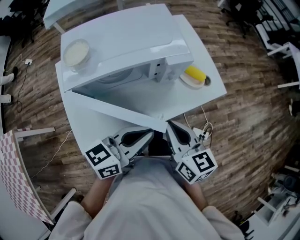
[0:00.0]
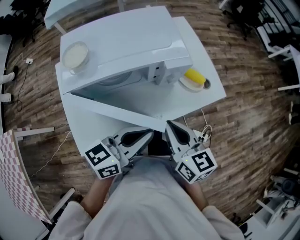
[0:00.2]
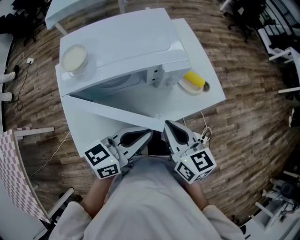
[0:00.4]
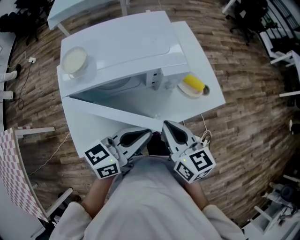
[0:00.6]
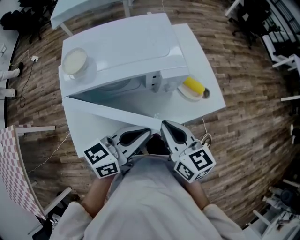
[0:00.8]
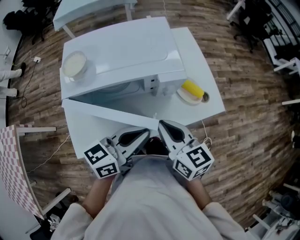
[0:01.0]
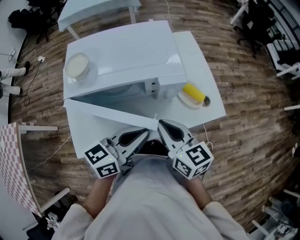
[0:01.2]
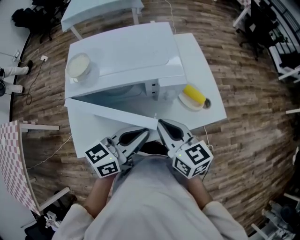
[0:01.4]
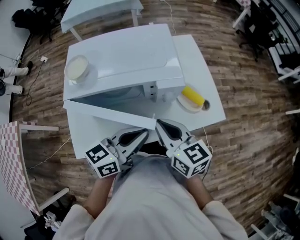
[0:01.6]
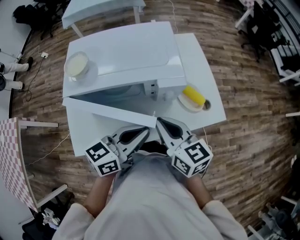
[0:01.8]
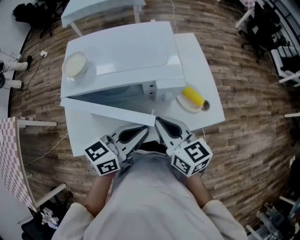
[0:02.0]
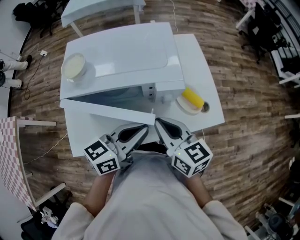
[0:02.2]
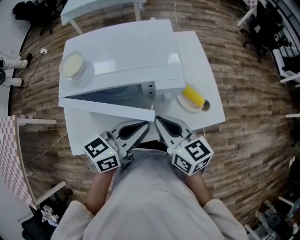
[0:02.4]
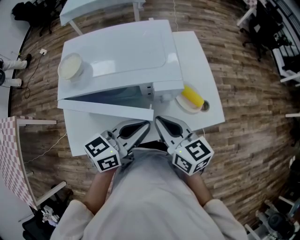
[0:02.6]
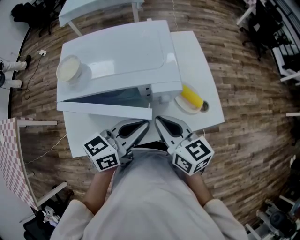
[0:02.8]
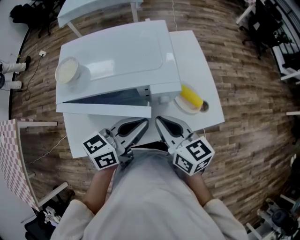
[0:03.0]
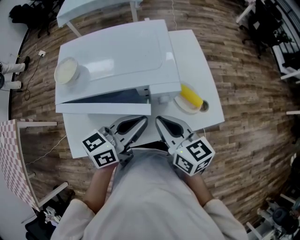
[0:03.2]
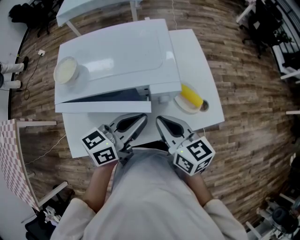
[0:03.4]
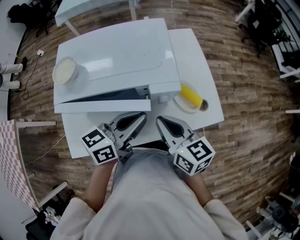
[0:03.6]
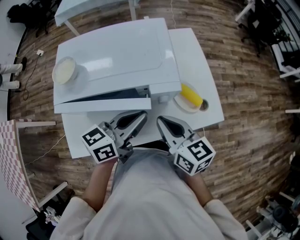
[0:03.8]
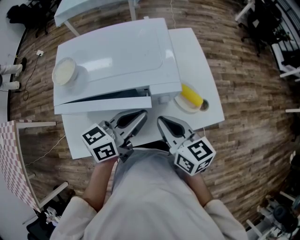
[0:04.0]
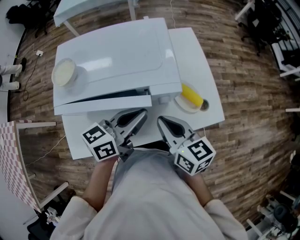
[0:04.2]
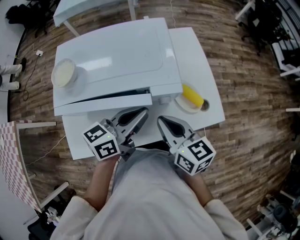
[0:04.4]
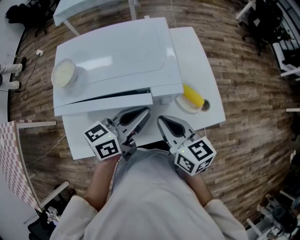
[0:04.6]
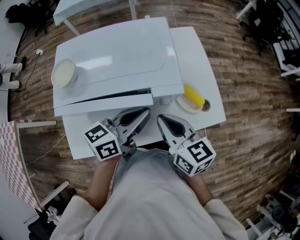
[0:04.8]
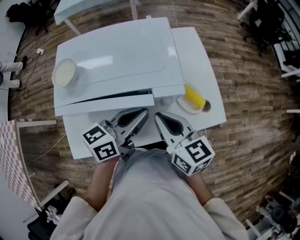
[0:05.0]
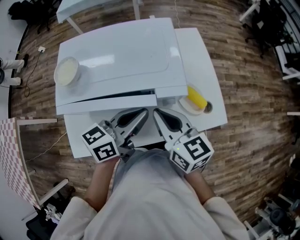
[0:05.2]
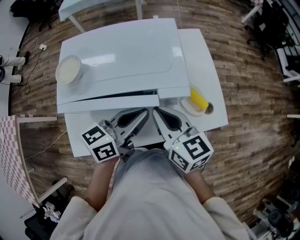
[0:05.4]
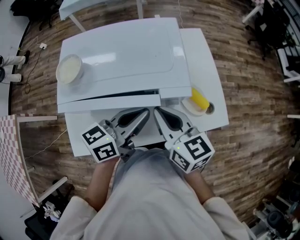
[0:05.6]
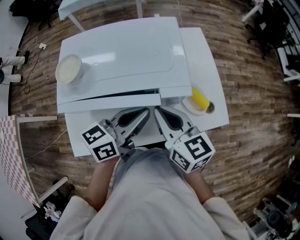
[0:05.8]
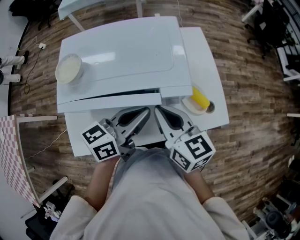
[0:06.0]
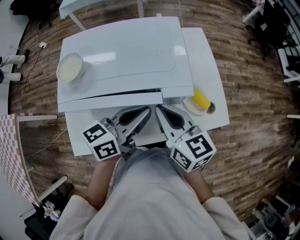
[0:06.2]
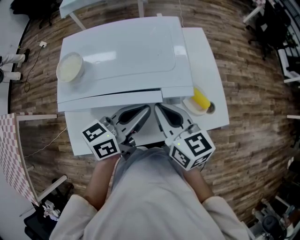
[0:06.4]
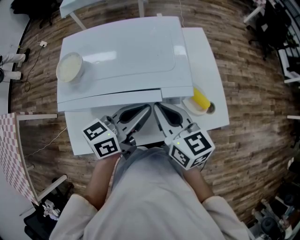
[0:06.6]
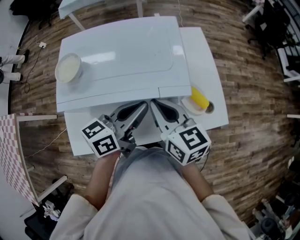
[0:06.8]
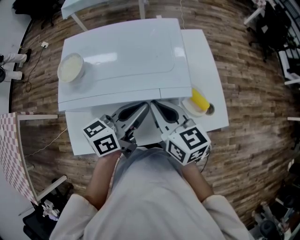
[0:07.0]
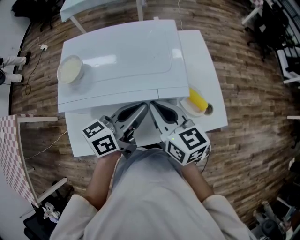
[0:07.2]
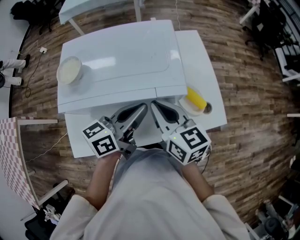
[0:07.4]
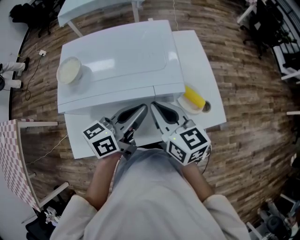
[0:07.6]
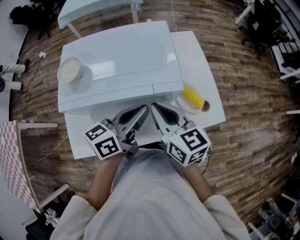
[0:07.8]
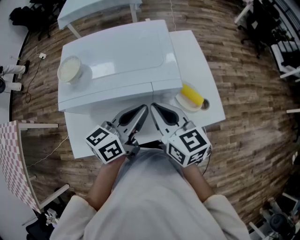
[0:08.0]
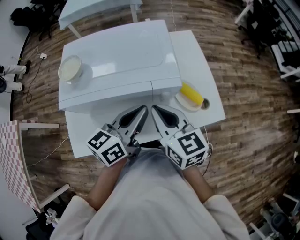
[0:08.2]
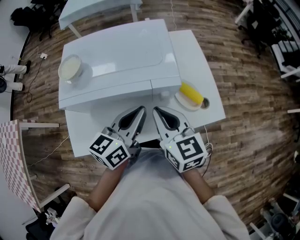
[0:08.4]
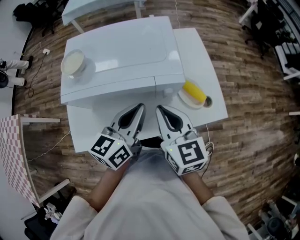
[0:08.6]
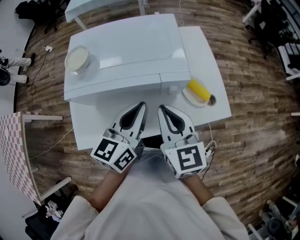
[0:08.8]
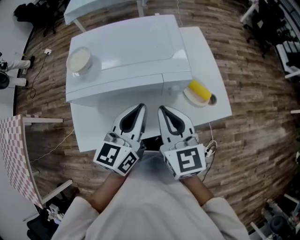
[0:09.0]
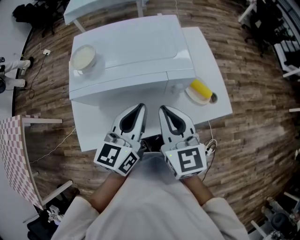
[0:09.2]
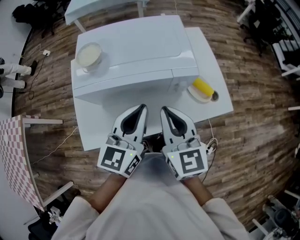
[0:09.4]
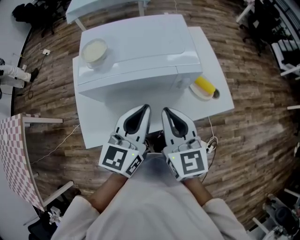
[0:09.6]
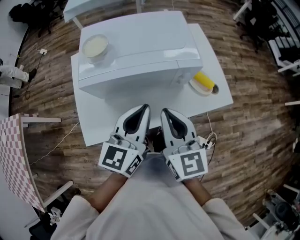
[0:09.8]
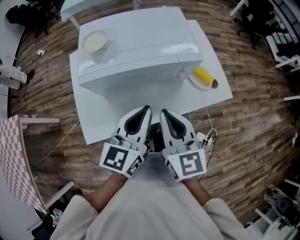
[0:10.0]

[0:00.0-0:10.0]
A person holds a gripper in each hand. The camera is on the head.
0.0 to 1.4 s: The two grippers go about 5 cm forward.
1.4 to 2.8 s: The left gripper is displaced forward by roughly 5 cm.
2.8 to 4.2 s: The grippers make only small movements.
4.2 to 5.8 s: The right gripper moves some 5 cm.
5.8 to 7.2 s: The grippers stay close to where they were, moving slightly.
7.2 to 8.6 s: The right gripper shifts some 5 cm backward. The left gripper changes its angle by about 20 degrees.
8.6 to 10.0 s: Both grippers move backward and to the left, about 10 cm.

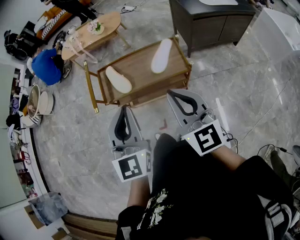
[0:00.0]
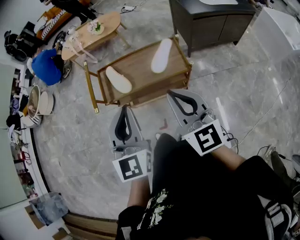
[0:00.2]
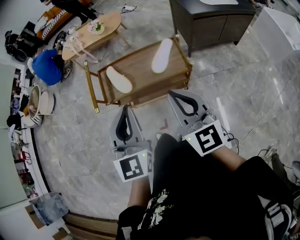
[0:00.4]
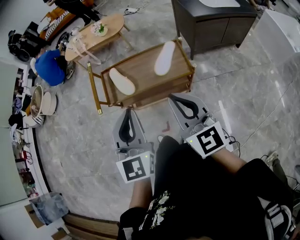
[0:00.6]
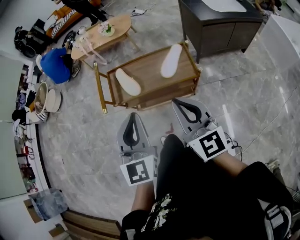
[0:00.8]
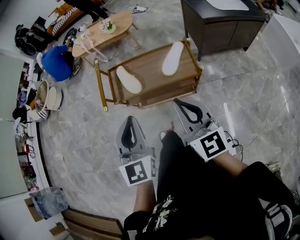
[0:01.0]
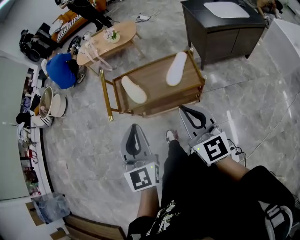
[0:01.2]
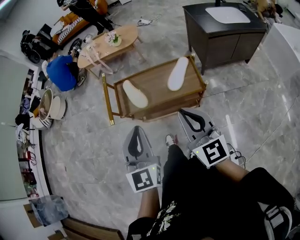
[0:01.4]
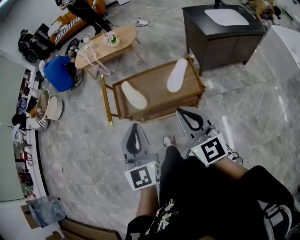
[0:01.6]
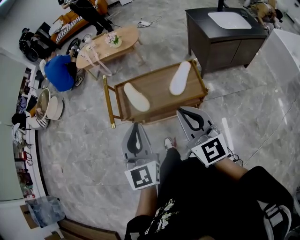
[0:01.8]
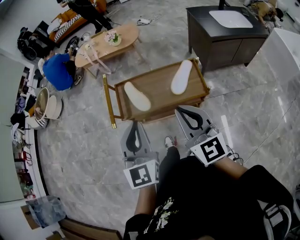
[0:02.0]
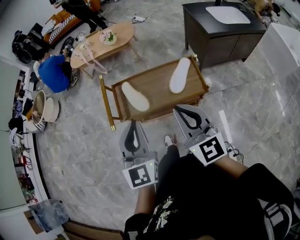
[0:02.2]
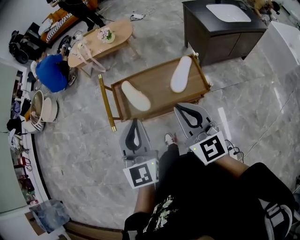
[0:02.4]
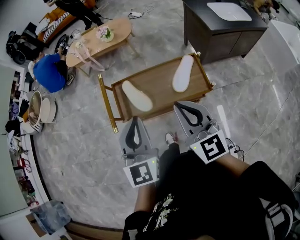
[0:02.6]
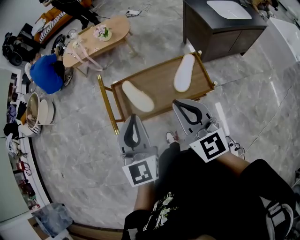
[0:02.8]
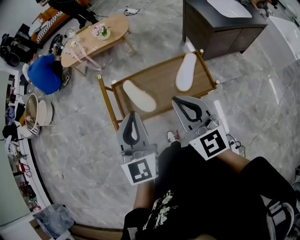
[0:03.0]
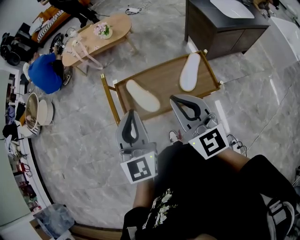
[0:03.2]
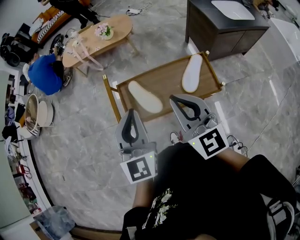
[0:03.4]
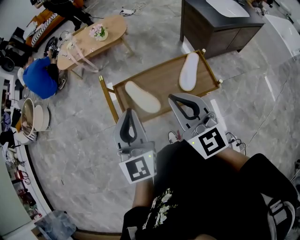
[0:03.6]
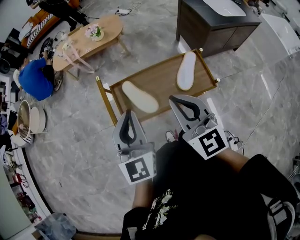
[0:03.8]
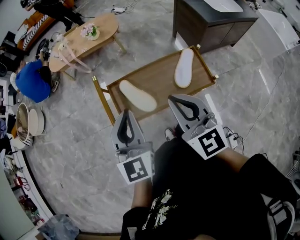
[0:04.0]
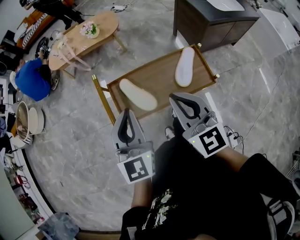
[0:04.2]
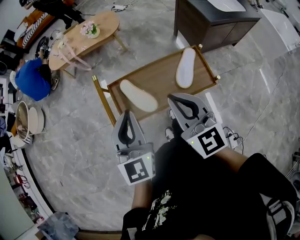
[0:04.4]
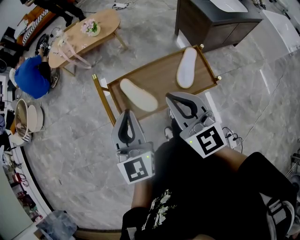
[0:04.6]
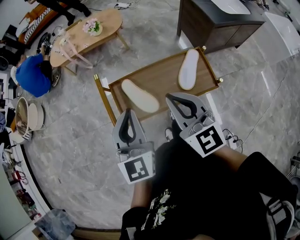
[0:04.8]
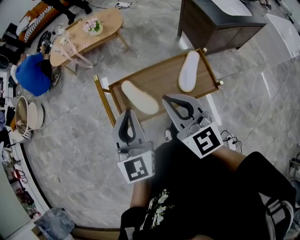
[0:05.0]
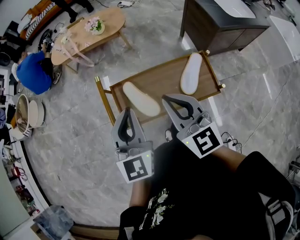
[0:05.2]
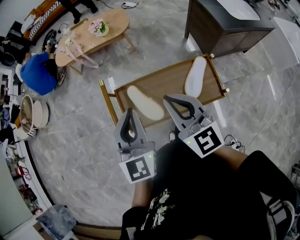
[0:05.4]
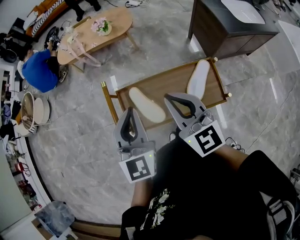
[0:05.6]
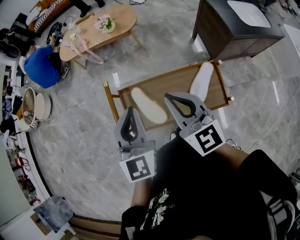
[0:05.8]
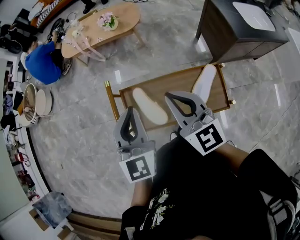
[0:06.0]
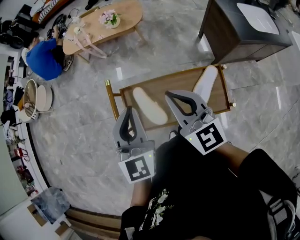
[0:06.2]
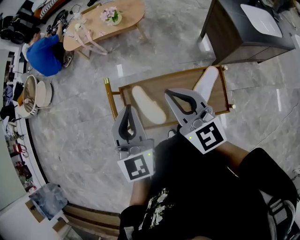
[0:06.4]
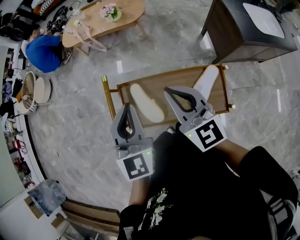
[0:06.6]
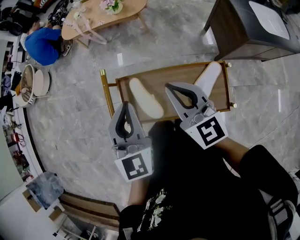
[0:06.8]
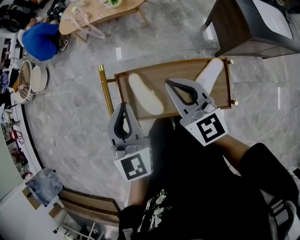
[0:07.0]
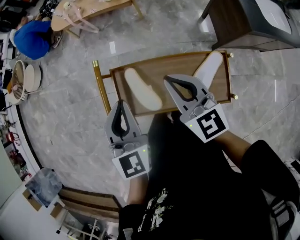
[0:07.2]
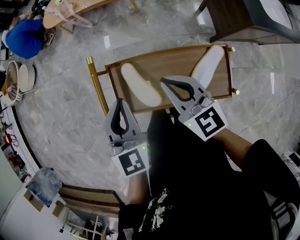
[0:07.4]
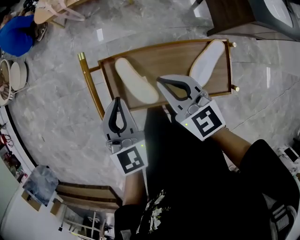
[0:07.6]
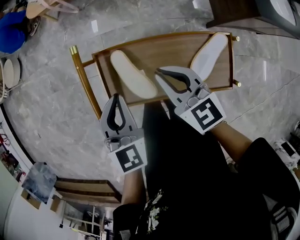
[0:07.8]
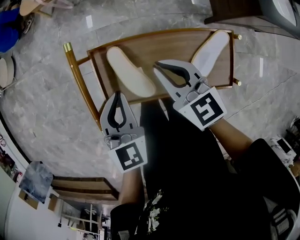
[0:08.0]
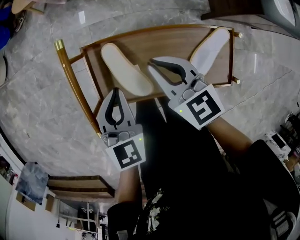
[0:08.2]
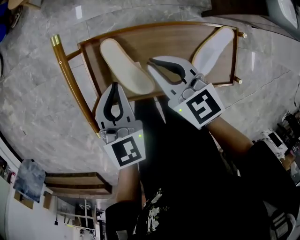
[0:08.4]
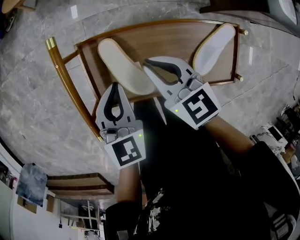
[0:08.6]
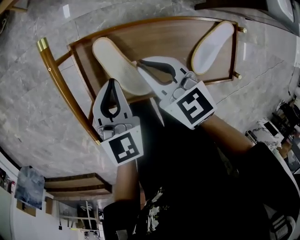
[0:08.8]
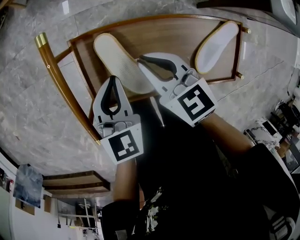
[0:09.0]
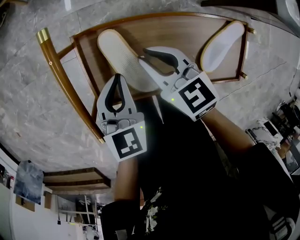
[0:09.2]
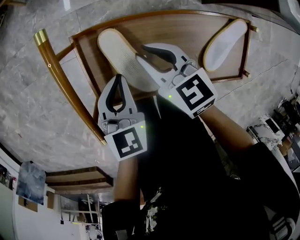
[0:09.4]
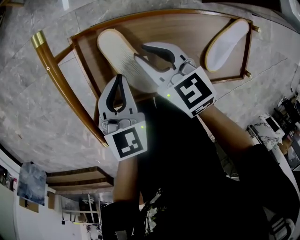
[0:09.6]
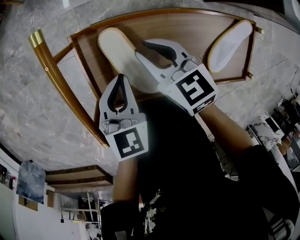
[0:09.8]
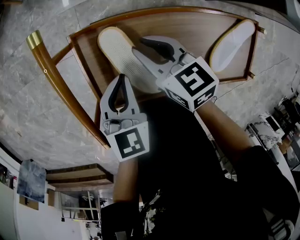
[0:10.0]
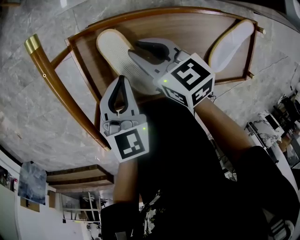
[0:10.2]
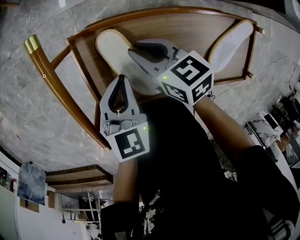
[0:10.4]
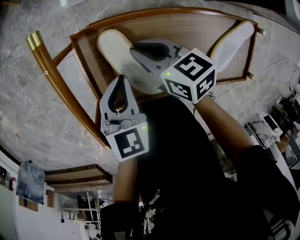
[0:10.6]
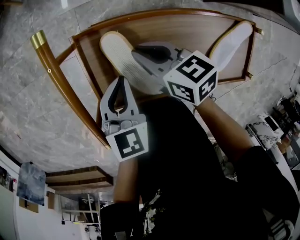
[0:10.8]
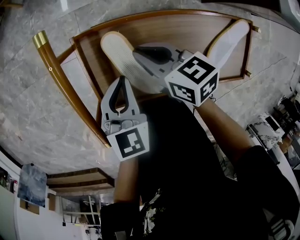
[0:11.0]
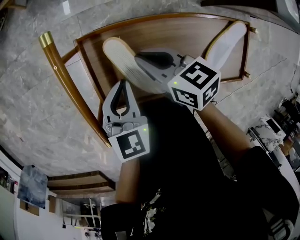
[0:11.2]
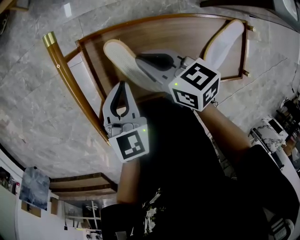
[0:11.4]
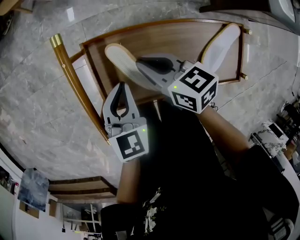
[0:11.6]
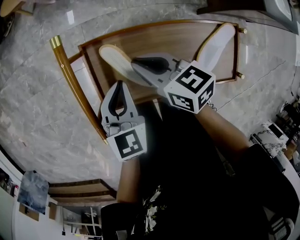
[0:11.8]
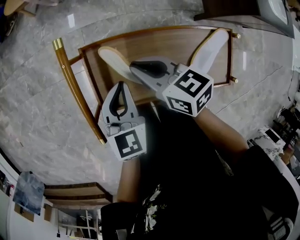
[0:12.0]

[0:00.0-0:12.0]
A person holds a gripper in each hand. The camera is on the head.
0.0 to 1.6 s: There are only small adjustments of the grippers.
1.6 to 3.0 s: The left gripper shifts some 15 cm forward. The right gripper shifts approximately 15 cm forward and to the left.
3.0 to 4.4 s: The right gripper shifts by about 5 cm. Meanwhile the left gripper changes place by approximately 5 cm.
4.4 to 6.0 s: The grippers both shift forward by approximately 10 cm.
6.0 to 7.6 s: The two grippers go approximately 15 cm downward. The right gripper swivels some 20 degrees.
7.6 to 9.0 s: The grippers both shift downward by approximately 15 cm.
9.0 to 10.4 s: The left gripper travels downward by about 5 cm, while the right gripper moves downward, about 10 cm.
10.4 to 12.0 s: Both grippers travel together upward, roughly 10 cm.

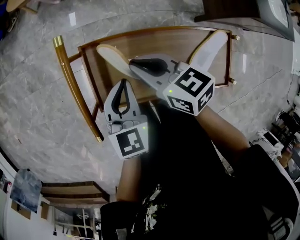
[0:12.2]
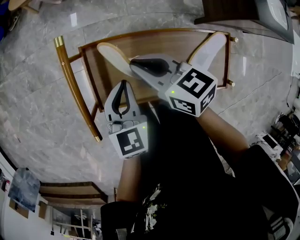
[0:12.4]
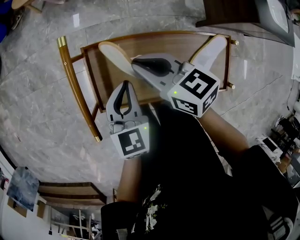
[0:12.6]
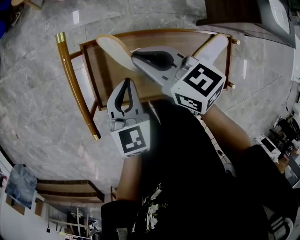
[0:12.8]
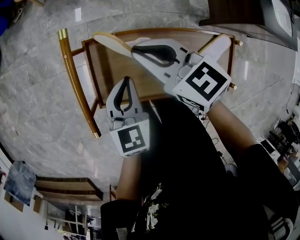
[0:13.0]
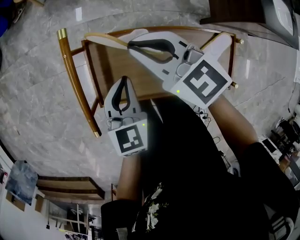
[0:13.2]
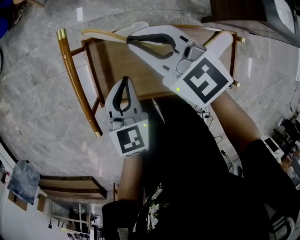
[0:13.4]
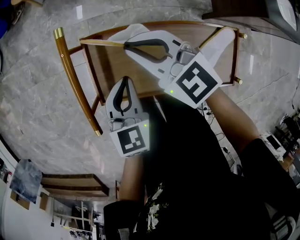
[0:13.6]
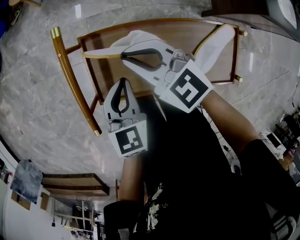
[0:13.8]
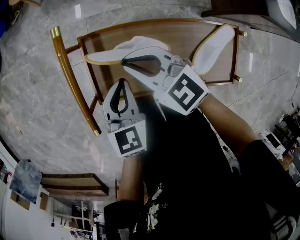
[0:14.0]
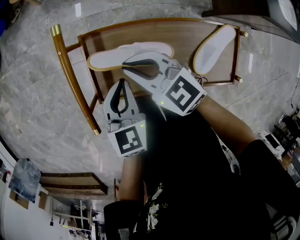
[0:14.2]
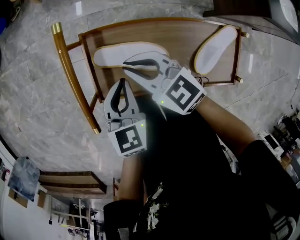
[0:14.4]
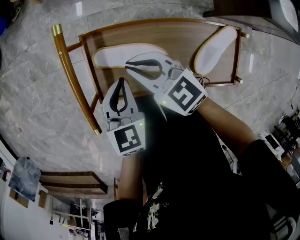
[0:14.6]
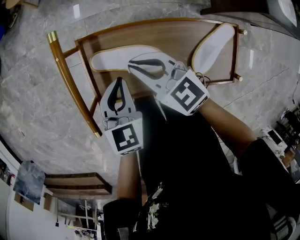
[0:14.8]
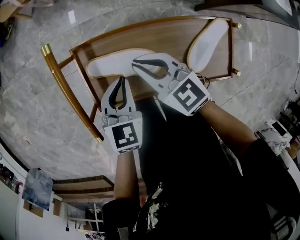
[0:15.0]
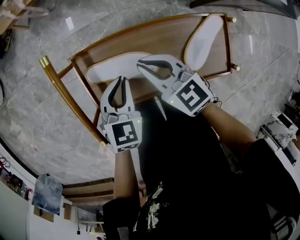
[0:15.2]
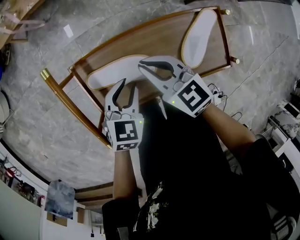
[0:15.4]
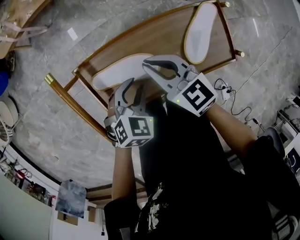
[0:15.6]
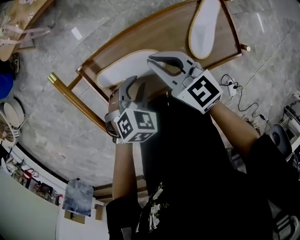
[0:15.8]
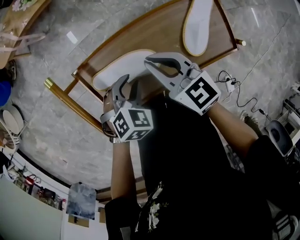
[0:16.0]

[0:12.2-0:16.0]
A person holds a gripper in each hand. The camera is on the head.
12.2 to 13.4 s: The right gripper moves upward, roughly 5 cm, and turns by approximately 30 degrees.
13.4 to 14.8 s: The right gripper shifts some 10 cm downward and backward.
14.8 to 16.0 s: The left gripper is displaced downward by about 5 cm, twists some 50 degrees clockwise, seen from behind, and opens up. The right gripper ends up roughly 10 cm from where it was, and rotates about 30 degrees.
